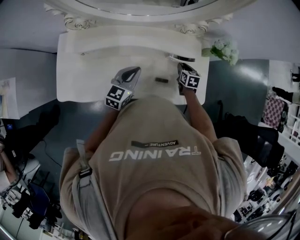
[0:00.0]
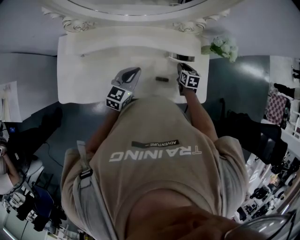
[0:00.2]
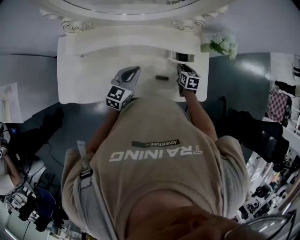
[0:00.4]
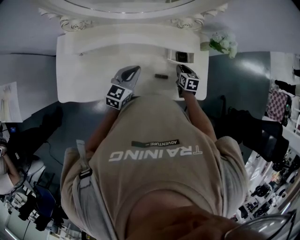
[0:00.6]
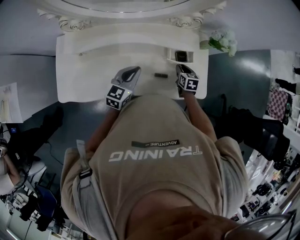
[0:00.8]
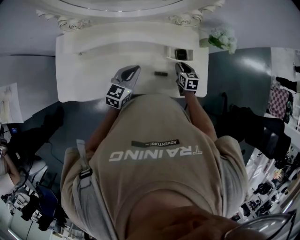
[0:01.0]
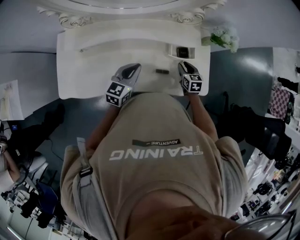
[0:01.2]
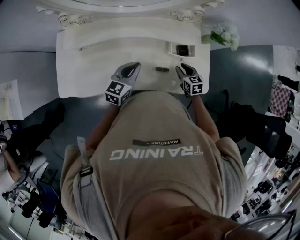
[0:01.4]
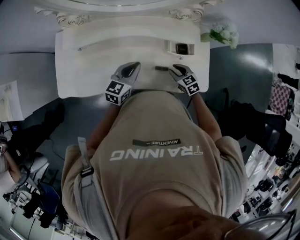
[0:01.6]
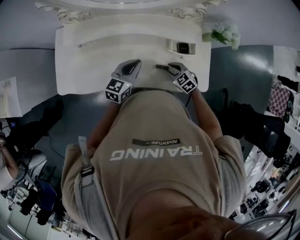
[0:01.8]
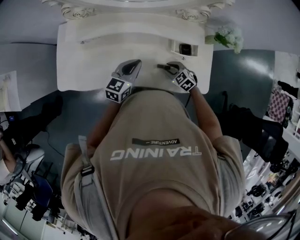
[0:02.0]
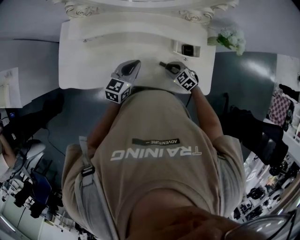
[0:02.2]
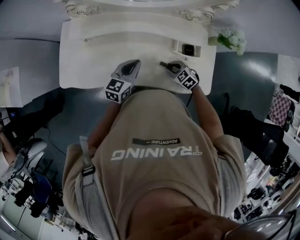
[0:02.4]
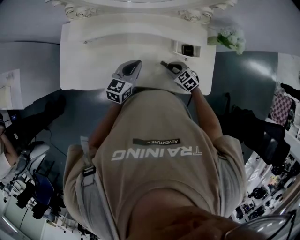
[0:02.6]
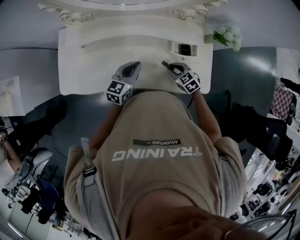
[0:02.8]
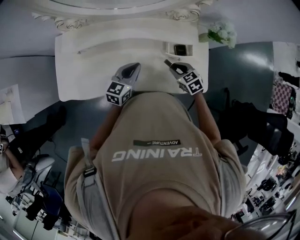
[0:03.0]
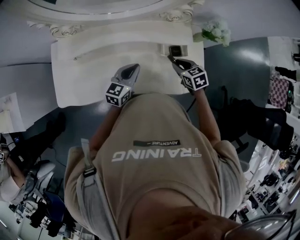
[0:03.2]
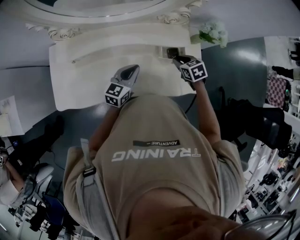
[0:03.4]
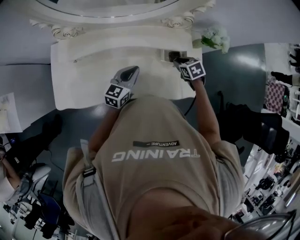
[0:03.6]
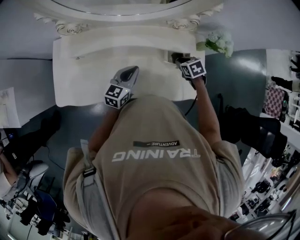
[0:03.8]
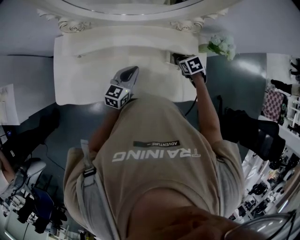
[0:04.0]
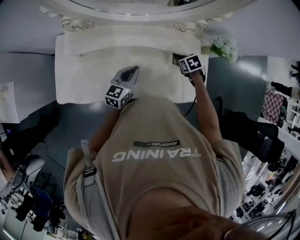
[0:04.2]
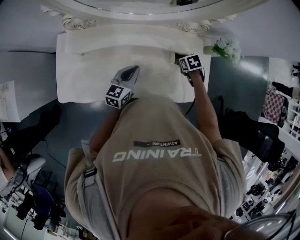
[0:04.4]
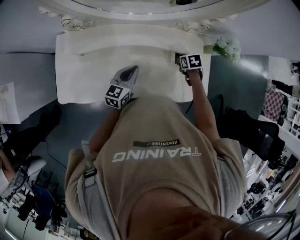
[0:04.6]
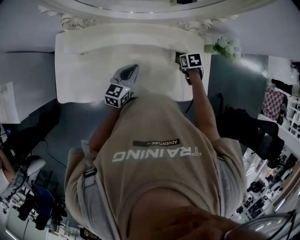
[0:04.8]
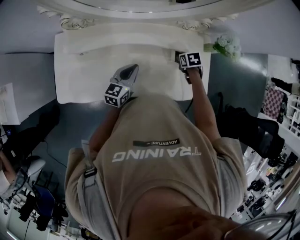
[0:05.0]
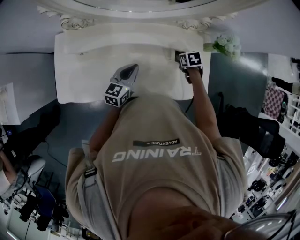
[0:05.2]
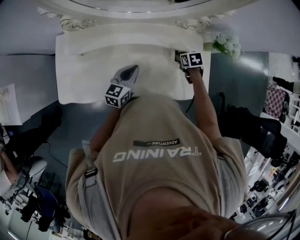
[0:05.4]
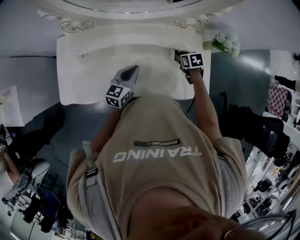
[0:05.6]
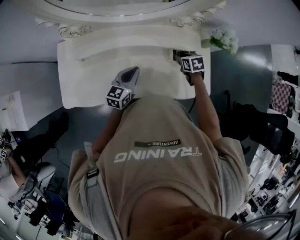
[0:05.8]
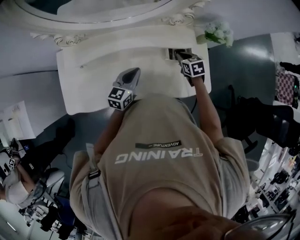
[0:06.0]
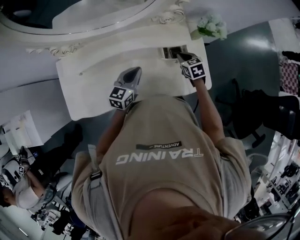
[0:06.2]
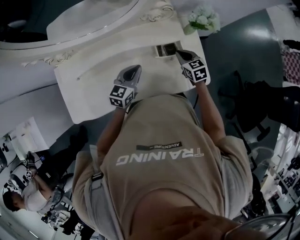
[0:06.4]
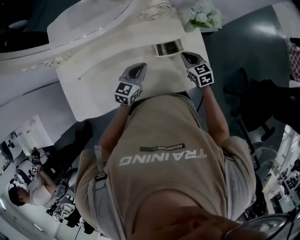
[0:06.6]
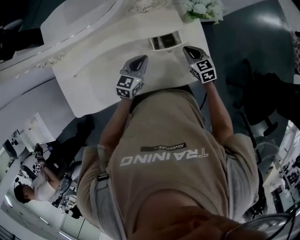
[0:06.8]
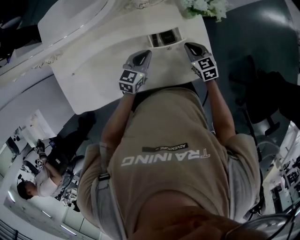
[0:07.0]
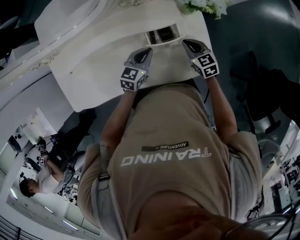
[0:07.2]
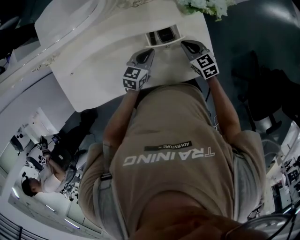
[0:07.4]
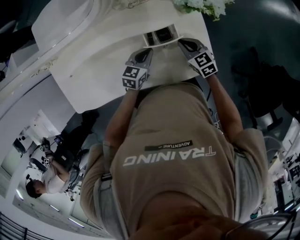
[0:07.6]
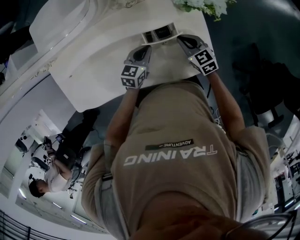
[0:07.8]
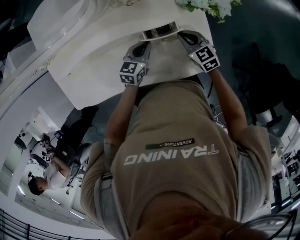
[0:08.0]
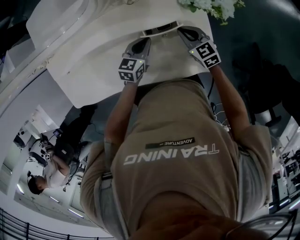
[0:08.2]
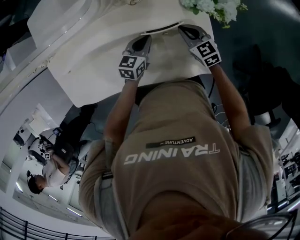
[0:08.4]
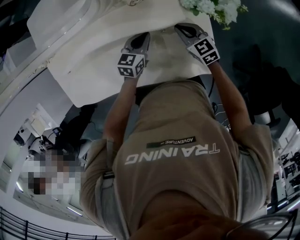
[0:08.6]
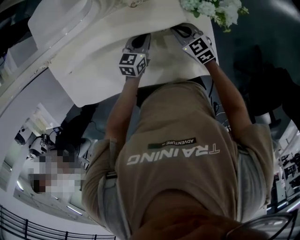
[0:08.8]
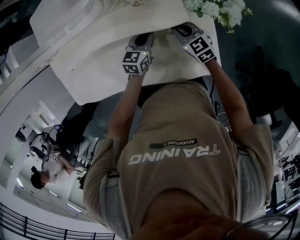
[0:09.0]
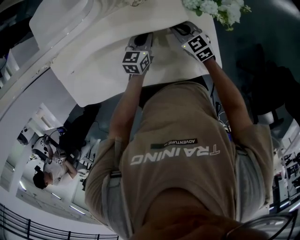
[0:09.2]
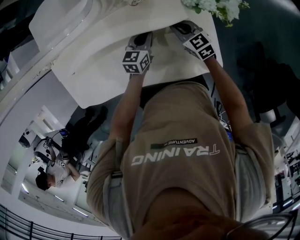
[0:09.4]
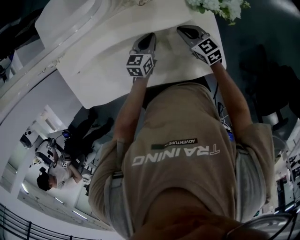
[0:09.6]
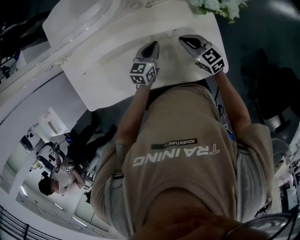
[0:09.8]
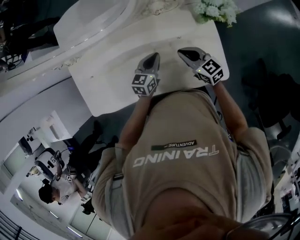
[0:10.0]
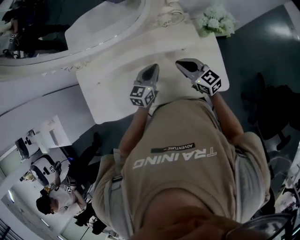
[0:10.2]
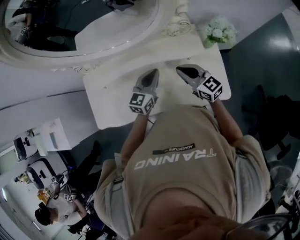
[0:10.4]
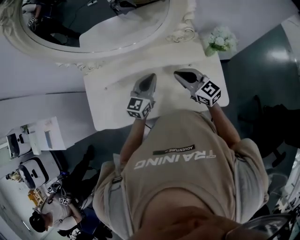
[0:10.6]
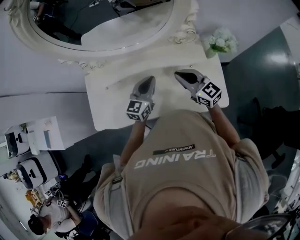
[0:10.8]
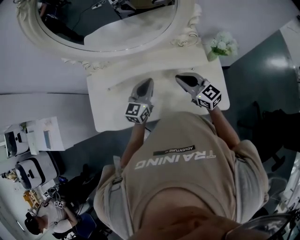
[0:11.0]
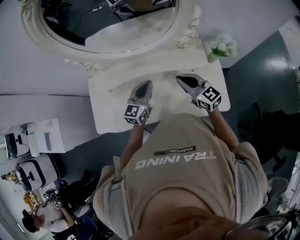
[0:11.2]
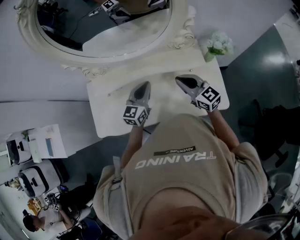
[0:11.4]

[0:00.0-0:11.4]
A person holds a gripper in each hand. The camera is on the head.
0:00.0 to 0:01.4: The right gripper heads backward, covering approximately 10 cm.
0:01.4 to 0:02.8: The right gripper moves to the left, roughly 10 cm, and turns by about 30 degrees.
0:02.8 to 0:04.2: The right gripper moves some 15 cm, and swivels roughly 30 degrees.
0:04.2 to 0:05.6: The grippers move only a little.
0:05.6 to 0:07.2: The grippers both shift to the right by some 20 cm. The right gripper rotates approximately 30 degrees, and closes its fingers. The left gripper changes its angle by roughly 20 degrees.
0:07.2 to 0:08.6: Both grippers move forward, about 5 cm.
0:08.6 to 0:10.0: The two grippers go about 10 cm upward, to the left and backward.
0:10.0 to 0:11.4: The two grippers go approximately 20 cm upward and to the left. The left gripper changes its angle by some 20 degrees.

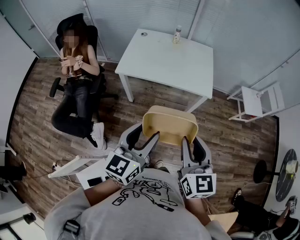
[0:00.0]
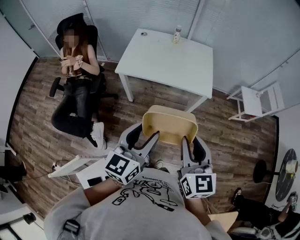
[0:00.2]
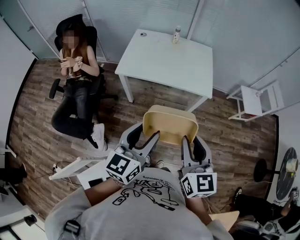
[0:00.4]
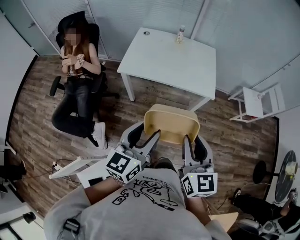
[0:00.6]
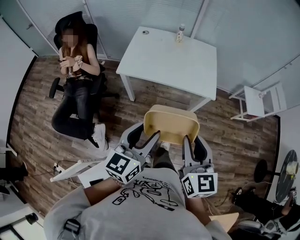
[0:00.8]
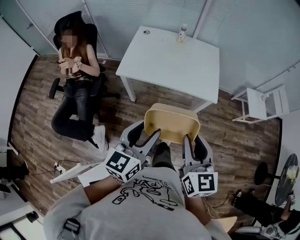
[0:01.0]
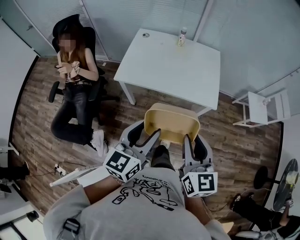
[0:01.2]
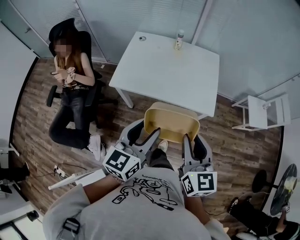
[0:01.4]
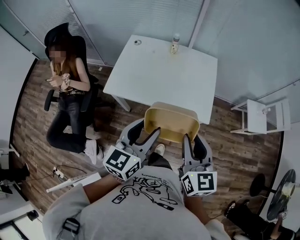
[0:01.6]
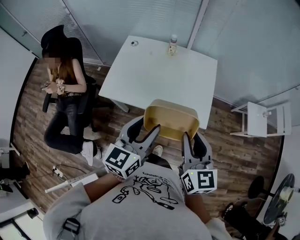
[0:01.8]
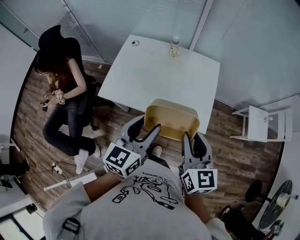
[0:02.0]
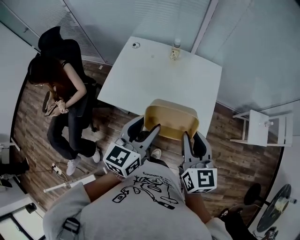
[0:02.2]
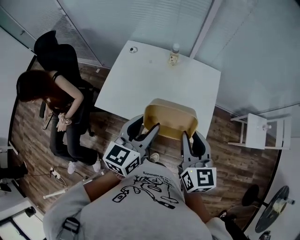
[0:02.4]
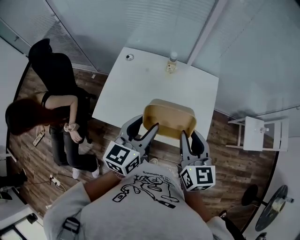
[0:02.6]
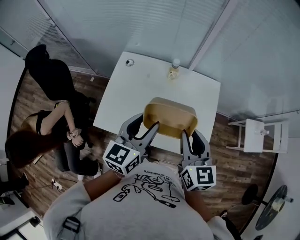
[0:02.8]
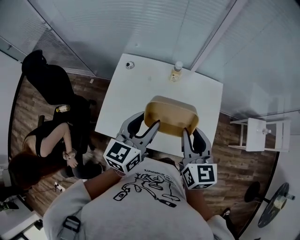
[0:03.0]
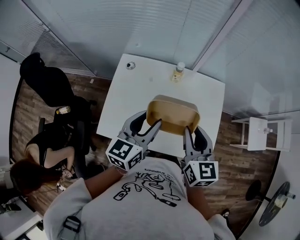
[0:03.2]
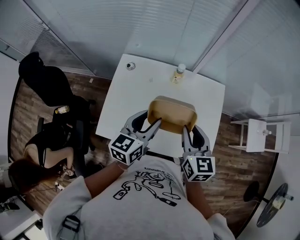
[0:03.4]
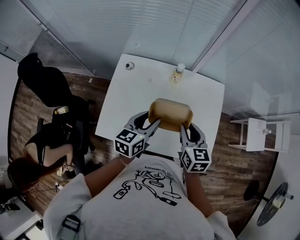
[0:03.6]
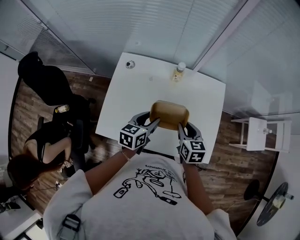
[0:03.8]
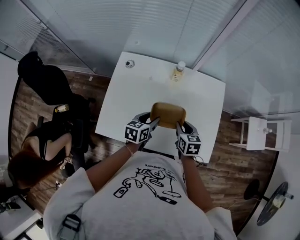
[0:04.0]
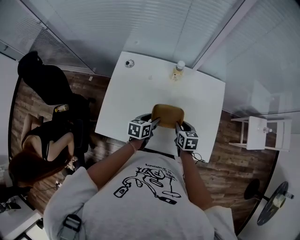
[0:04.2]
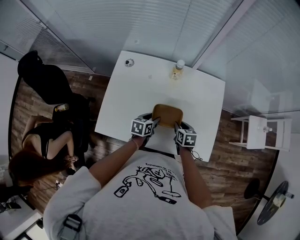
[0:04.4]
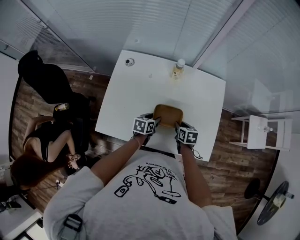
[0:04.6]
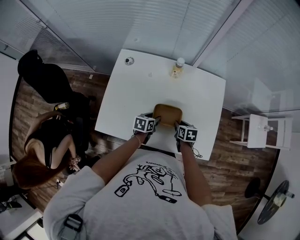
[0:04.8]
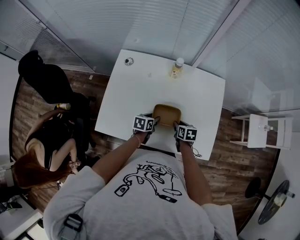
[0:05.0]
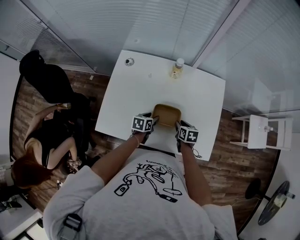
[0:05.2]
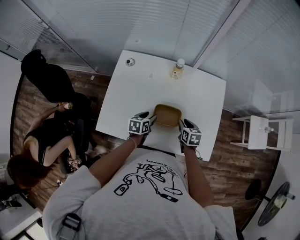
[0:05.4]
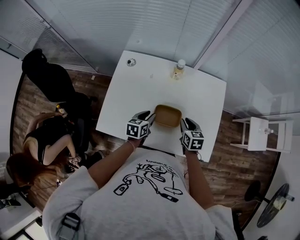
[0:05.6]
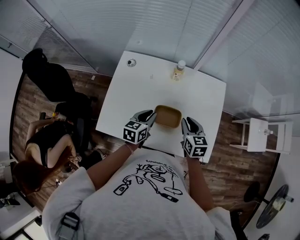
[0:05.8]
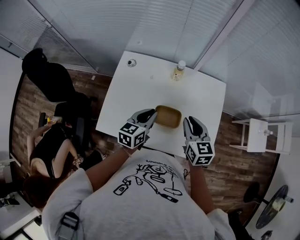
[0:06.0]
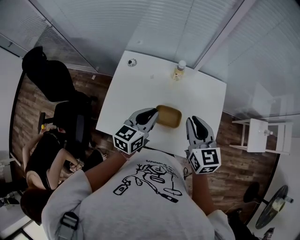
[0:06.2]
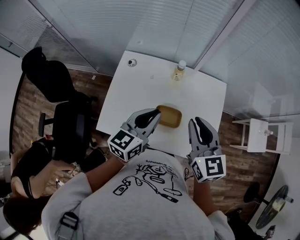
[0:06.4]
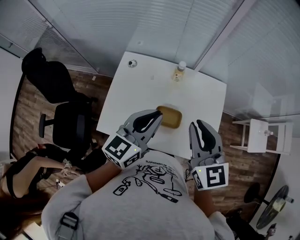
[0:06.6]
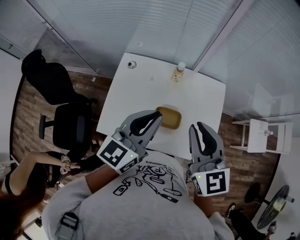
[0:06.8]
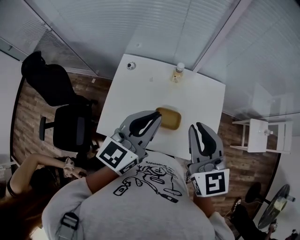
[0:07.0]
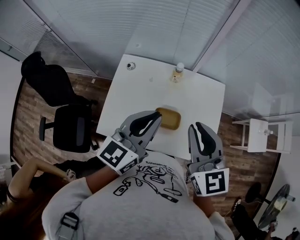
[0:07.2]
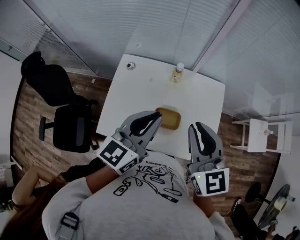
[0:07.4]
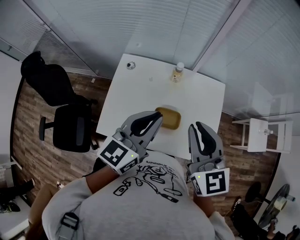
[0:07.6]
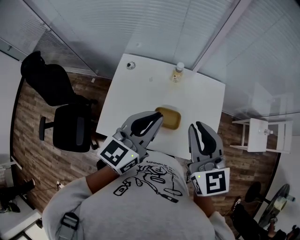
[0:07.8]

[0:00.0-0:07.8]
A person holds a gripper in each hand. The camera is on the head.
0:00.0 to 0:01.6: The two grippers go about 25 cm forward.
0:01.6 to 0:03.2: The grippers both shift forward by about 35 cm.
0:03.2 to 0:04.6: Both grippers move downward, approximately 35 cm. The right gripper angles its fingers downward, by approximately 30 degrees. Meanwhile the left gripper rotates roughly 40 degrees.
0:04.6 to 0:06.2: The grippers both shift upward by approximately 25 cm. The left gripper turns by roughly 30 degrees, and closes. The right gripper angles its fingers upward, by roughly 30 degrees.
0:06.2 to 0:07.8: The grippers both shift upward by some 15 cm.

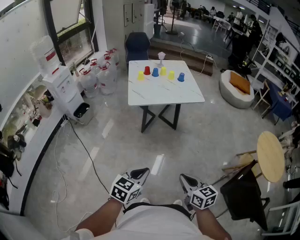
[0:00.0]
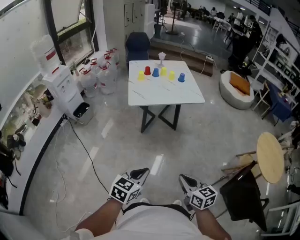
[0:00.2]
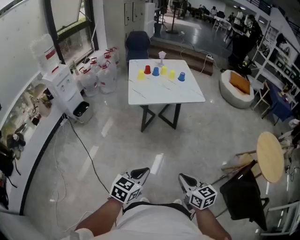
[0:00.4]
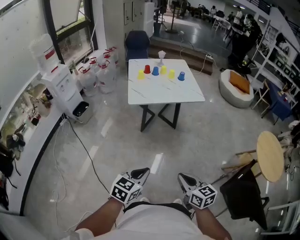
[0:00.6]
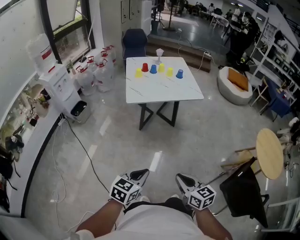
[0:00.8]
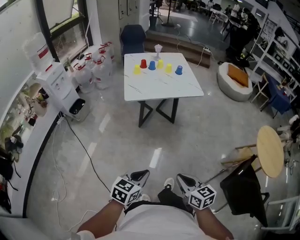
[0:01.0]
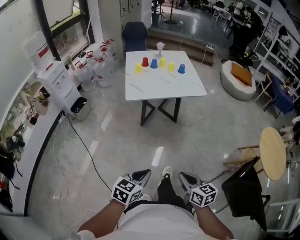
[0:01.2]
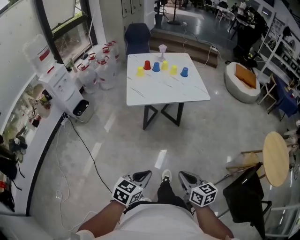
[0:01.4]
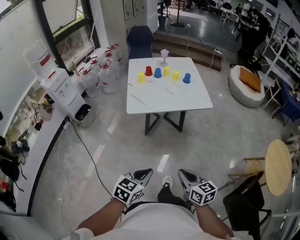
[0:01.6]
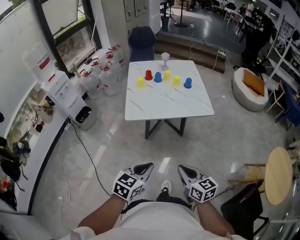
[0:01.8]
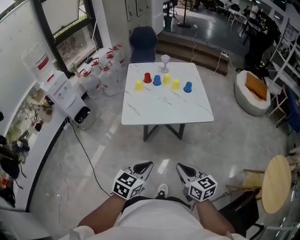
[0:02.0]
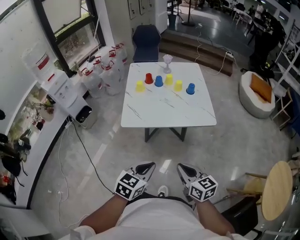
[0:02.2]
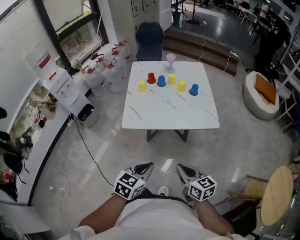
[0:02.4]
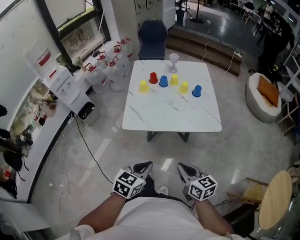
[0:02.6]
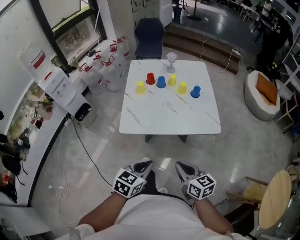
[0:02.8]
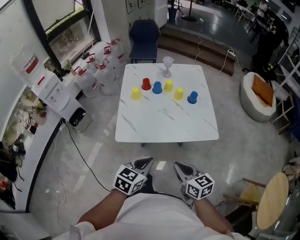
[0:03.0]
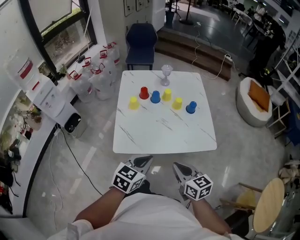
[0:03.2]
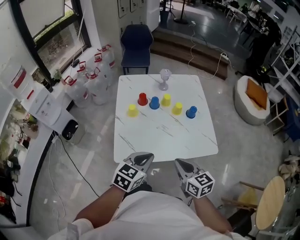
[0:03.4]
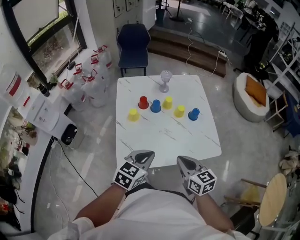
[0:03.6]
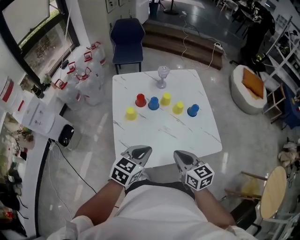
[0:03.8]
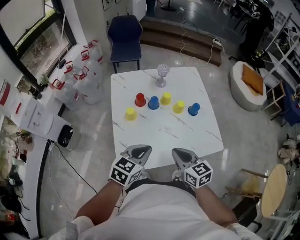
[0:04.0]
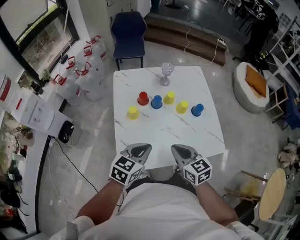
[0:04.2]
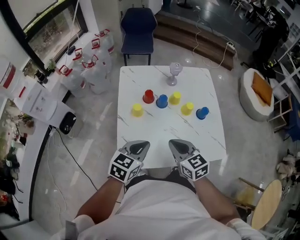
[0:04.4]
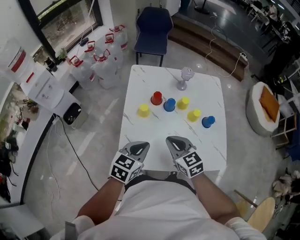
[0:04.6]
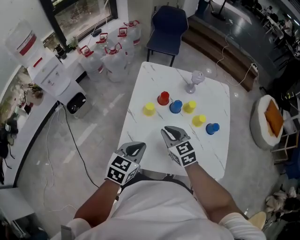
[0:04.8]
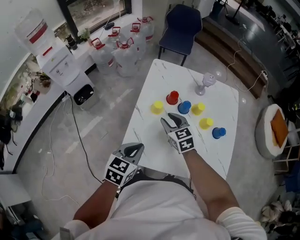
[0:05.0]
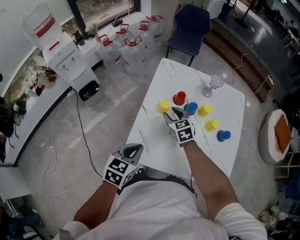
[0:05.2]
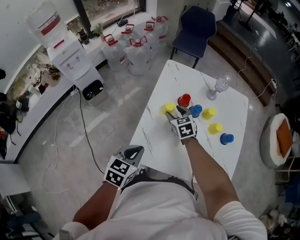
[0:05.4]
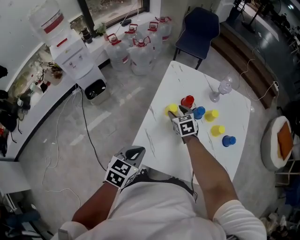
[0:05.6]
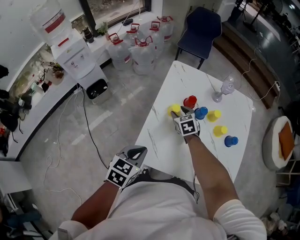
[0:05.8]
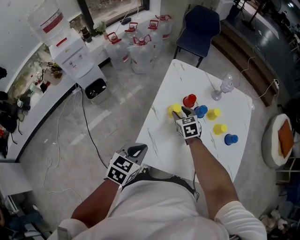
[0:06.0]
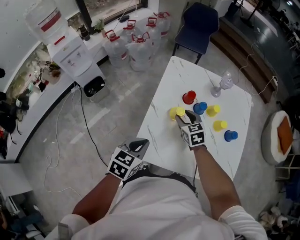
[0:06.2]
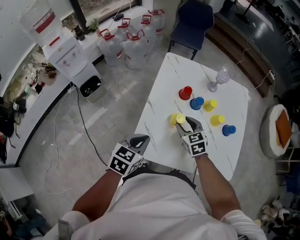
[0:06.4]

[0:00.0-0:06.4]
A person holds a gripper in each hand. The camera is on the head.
0:00.0 to 0:01.6: Both grippers travel together forward, approximately 15 cm.
0:01.6 to 0:03.2: The two grippers go approximately 40 cm forward.
0:03.2 to 0:04.8: The left gripper is displaced forward and to the left by about 20 cm; the right gripper goes about 35 cm forward and to the left, and rotates about 30 degrees.
0:04.8 to 0:06.4: The left gripper goes about 5 cm to the left, while the right gripper shifts some 5 cm downward, travels forward and back again, approximately 15 cm each way, and opens.
